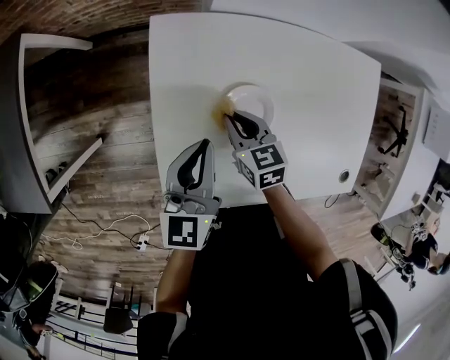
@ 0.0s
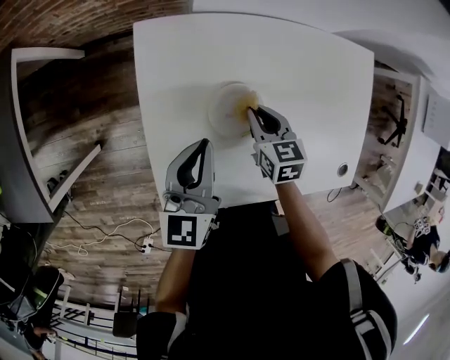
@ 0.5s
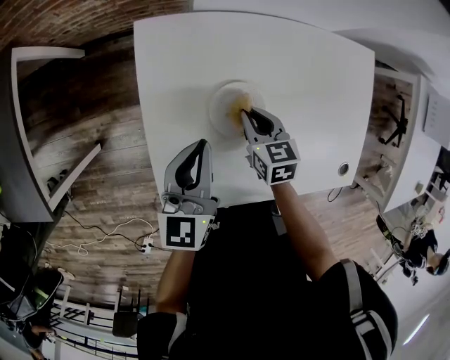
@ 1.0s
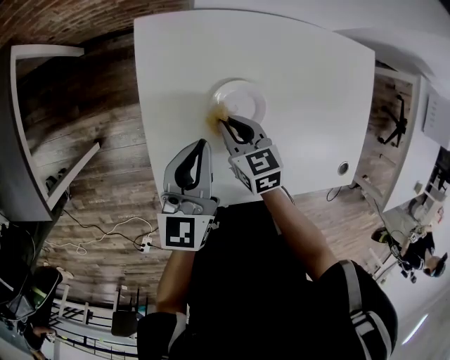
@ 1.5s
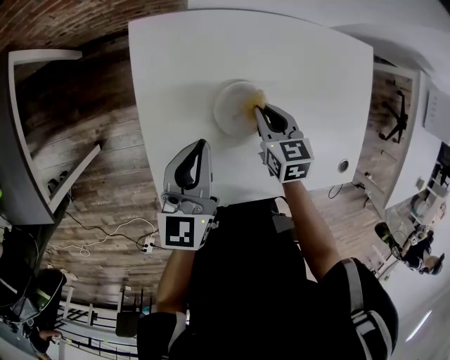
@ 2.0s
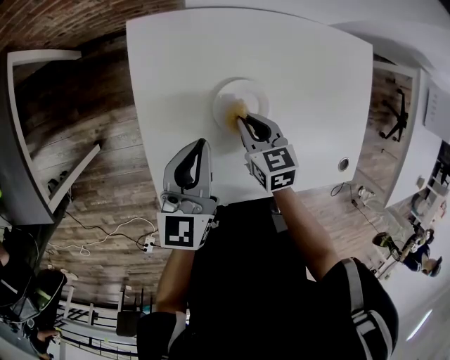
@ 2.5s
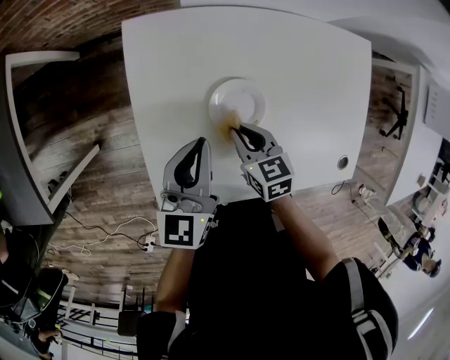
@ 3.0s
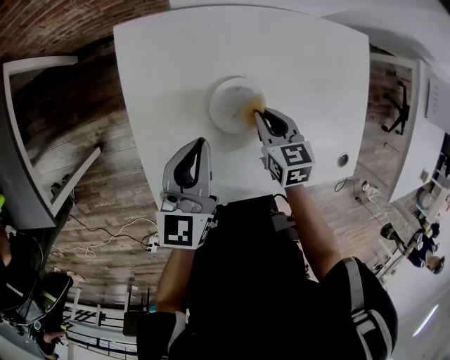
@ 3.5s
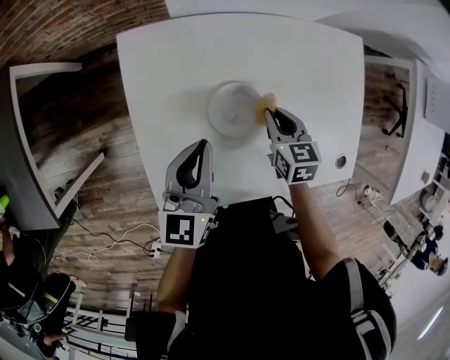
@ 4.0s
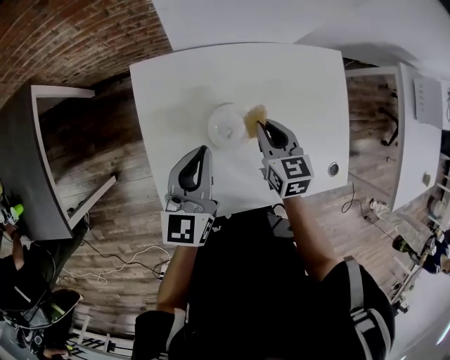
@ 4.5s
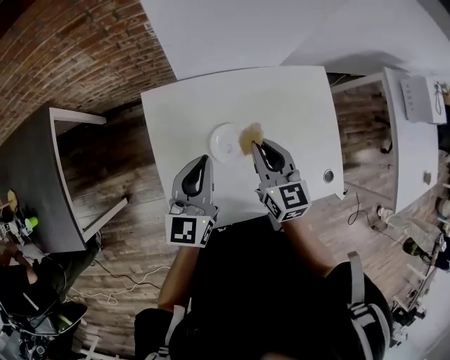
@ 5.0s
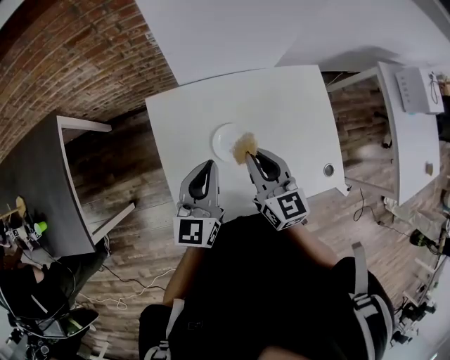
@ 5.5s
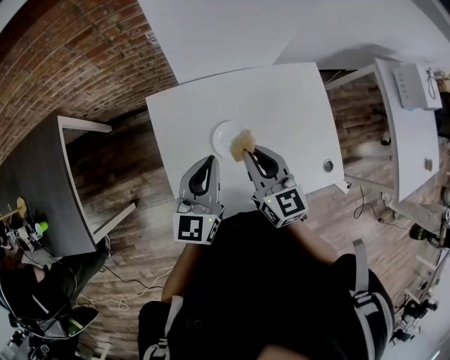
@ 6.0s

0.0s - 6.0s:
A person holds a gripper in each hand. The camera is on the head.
0.0s - 2.0s: The right gripper swings left and right, roughly 10 cm each way, with 2 reversals.
2.0s - 4.0s: The right gripper is displaced to the right by approximately 5 cm.
4.0s - 6.0s: The right gripper is displaced upward by about 25 cm, and angles its fingers upward, by about 30 degrees; the left gripper is displaced upward by approximately 15 cm.

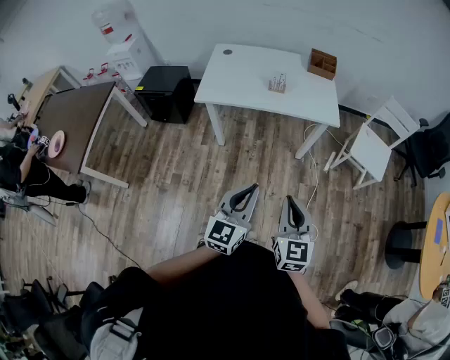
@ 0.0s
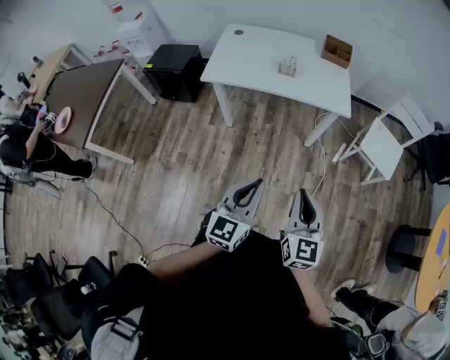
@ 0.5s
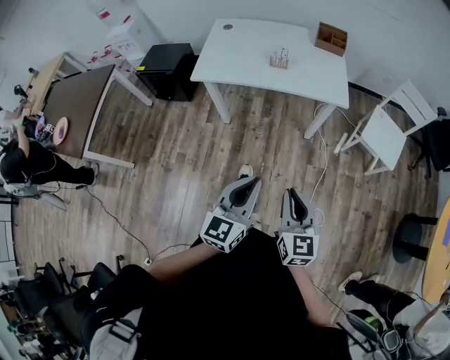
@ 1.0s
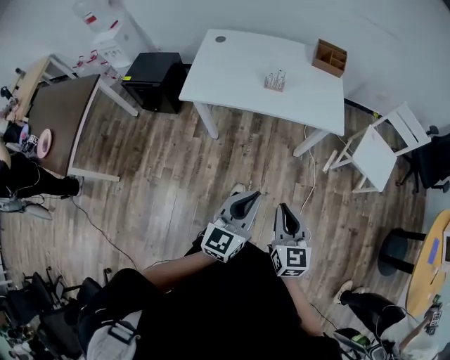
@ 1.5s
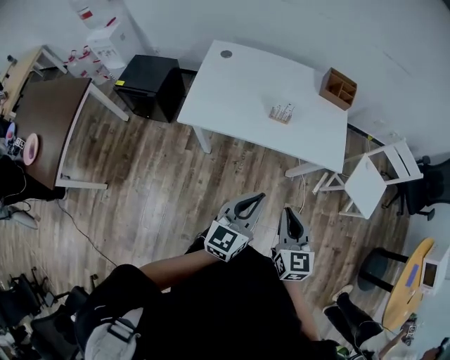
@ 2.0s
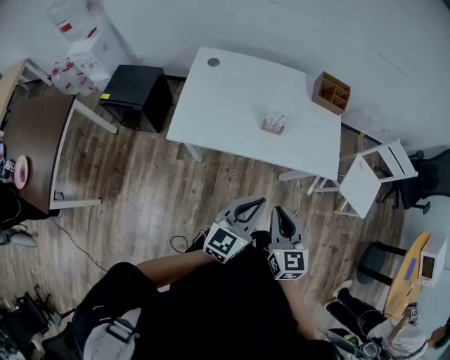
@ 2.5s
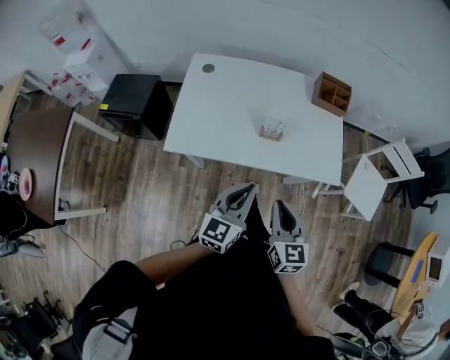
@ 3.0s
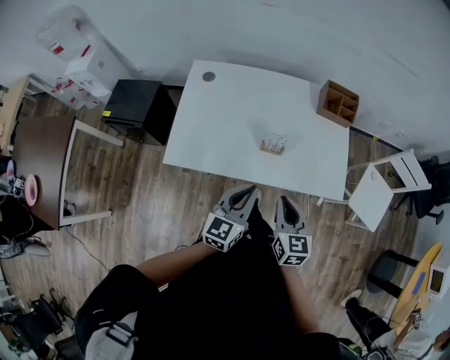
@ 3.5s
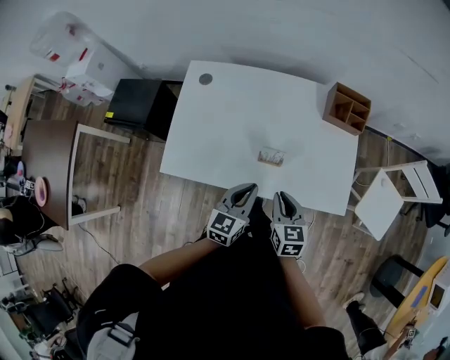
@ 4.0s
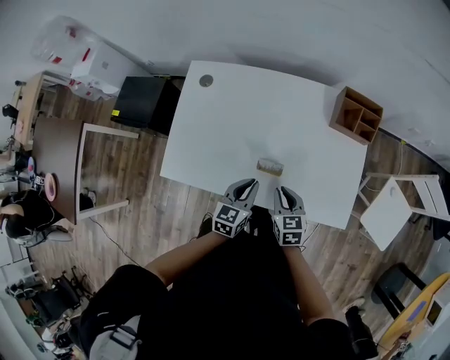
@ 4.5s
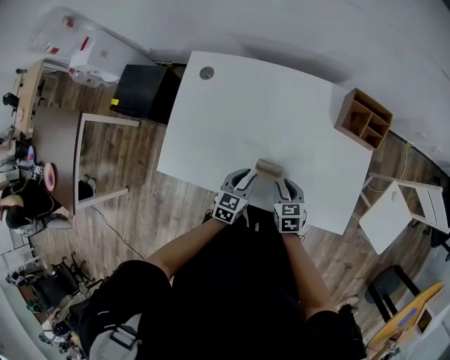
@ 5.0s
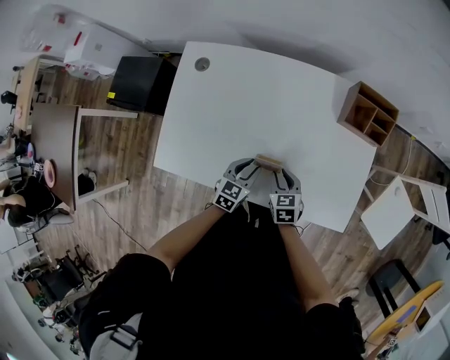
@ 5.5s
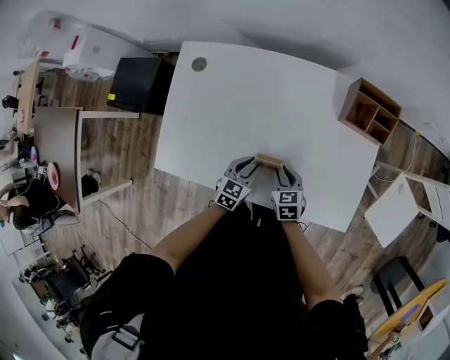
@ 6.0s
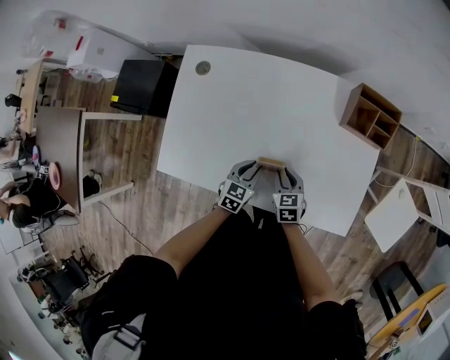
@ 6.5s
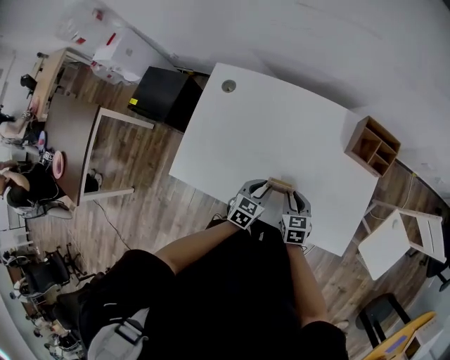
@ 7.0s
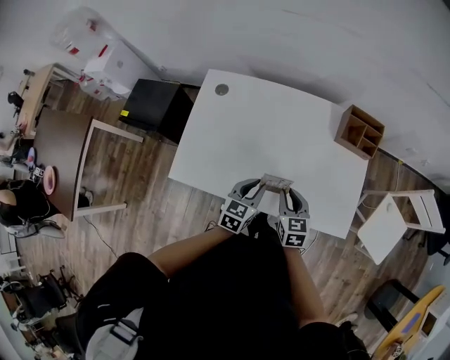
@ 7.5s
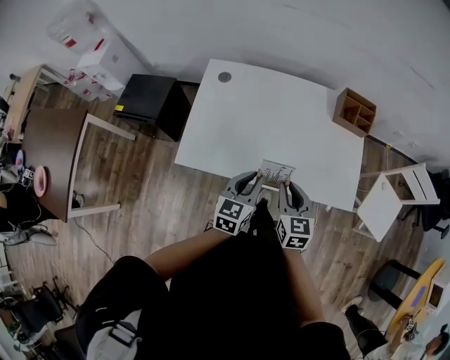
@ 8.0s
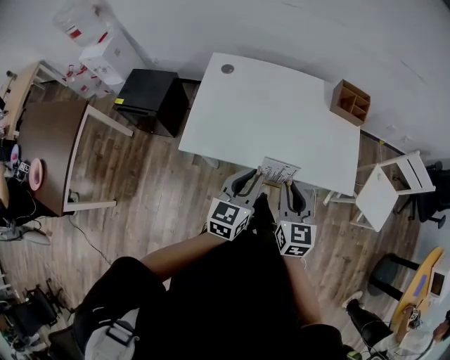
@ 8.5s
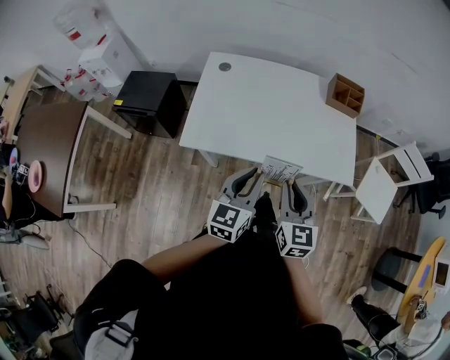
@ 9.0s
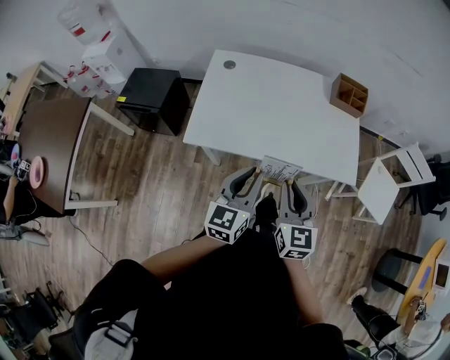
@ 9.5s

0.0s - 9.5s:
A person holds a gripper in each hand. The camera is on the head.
0.0s - 2.0s: The grippers both shift forward by roughly 30 cm.
2.0s - 4.0s: The right gripper shifts some 30 cm forward, while the left gripper is displaced forward and downward by roughly 35 cm.
4.0s - 5.5s: Both grippers move downward and forward, about 20 cm. The left gripper opens its fingers.
5.5s - 7.5s: The two grippers go some 10 cm upward.
7.5s - 9.5s: The grippers both shift backward and upward by approximately 30 cm. The left gripper rotates approximately 20 degrees, while the right gripper turns by about 20 degrees.

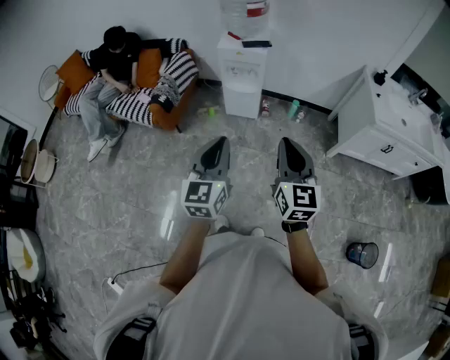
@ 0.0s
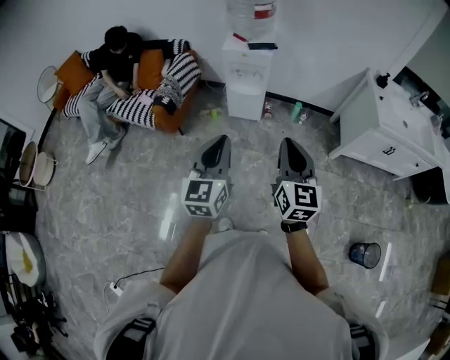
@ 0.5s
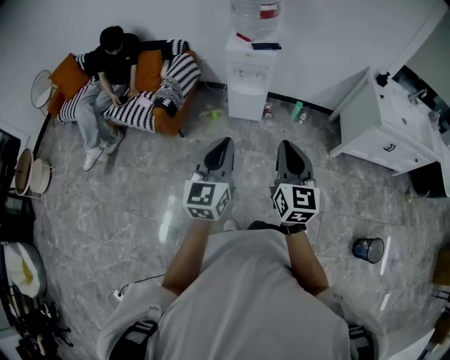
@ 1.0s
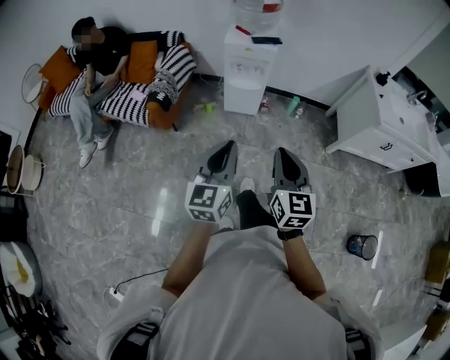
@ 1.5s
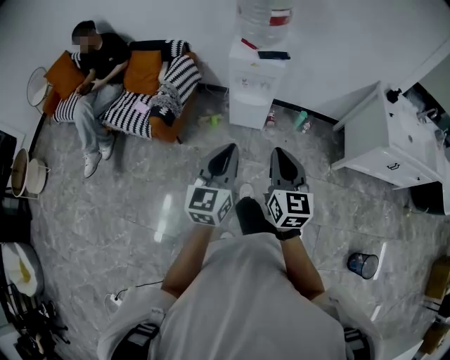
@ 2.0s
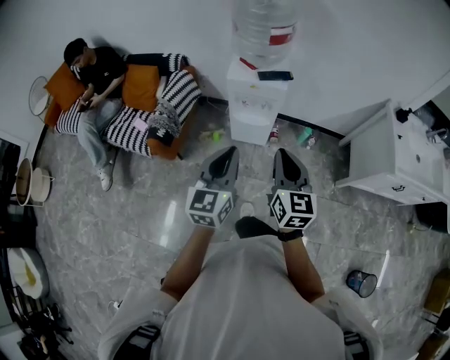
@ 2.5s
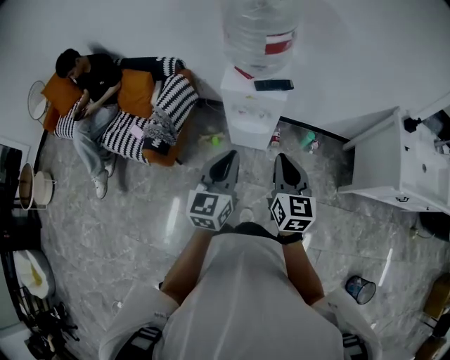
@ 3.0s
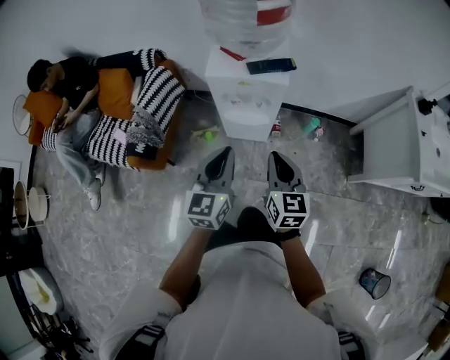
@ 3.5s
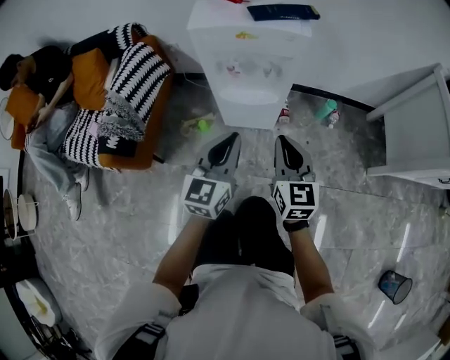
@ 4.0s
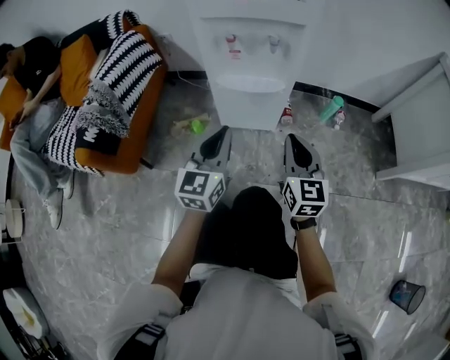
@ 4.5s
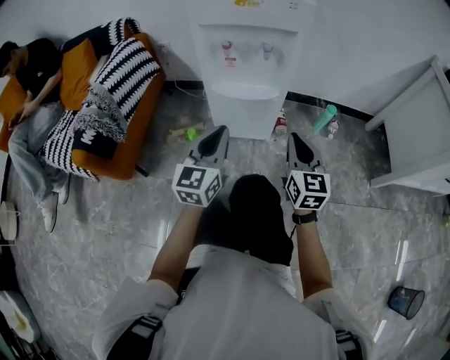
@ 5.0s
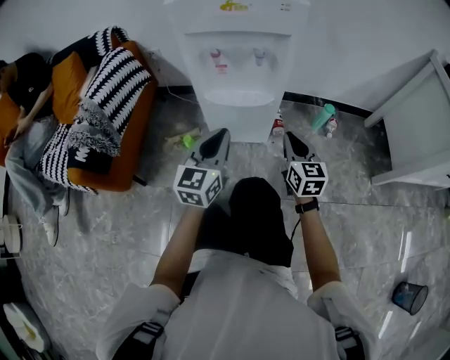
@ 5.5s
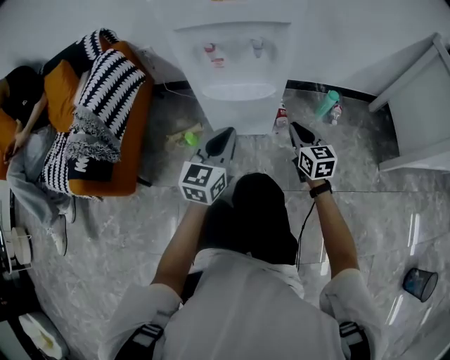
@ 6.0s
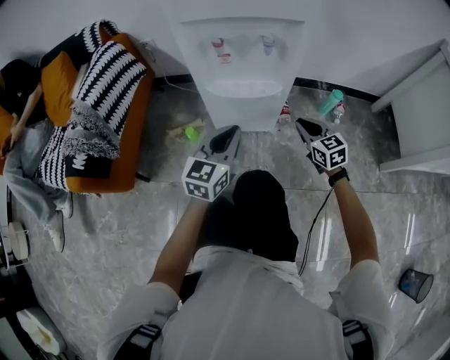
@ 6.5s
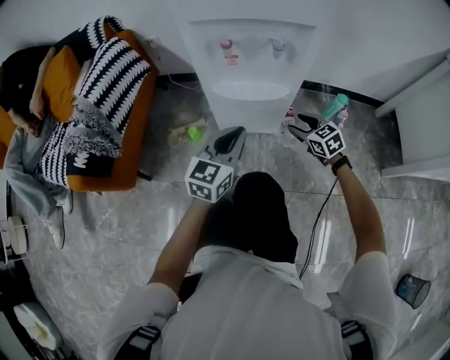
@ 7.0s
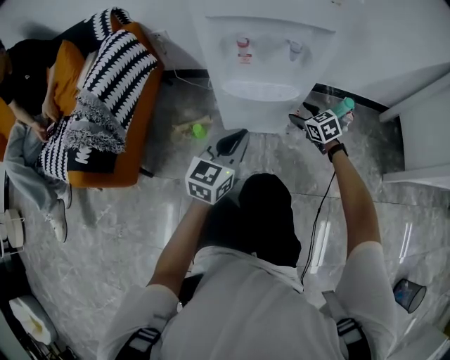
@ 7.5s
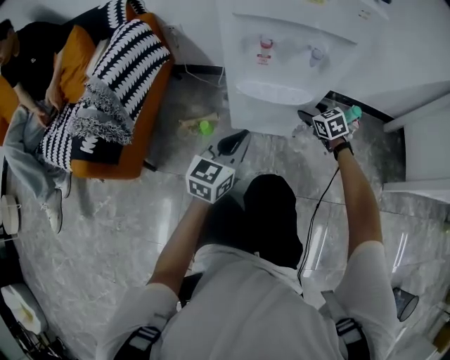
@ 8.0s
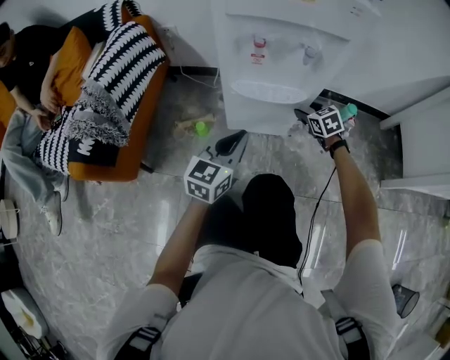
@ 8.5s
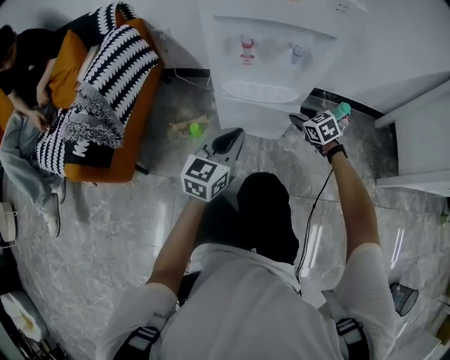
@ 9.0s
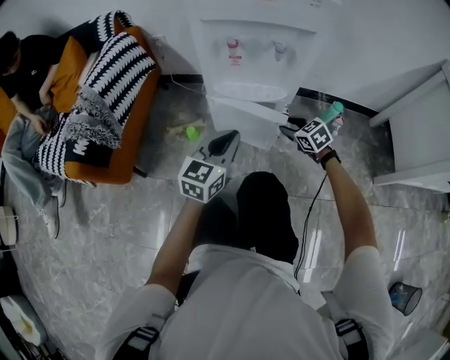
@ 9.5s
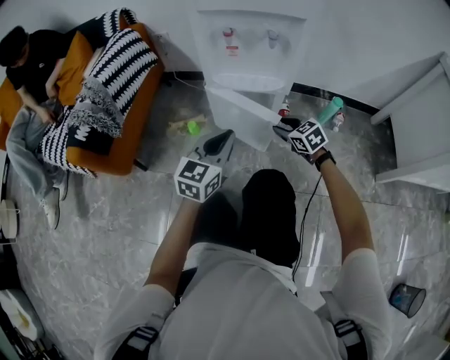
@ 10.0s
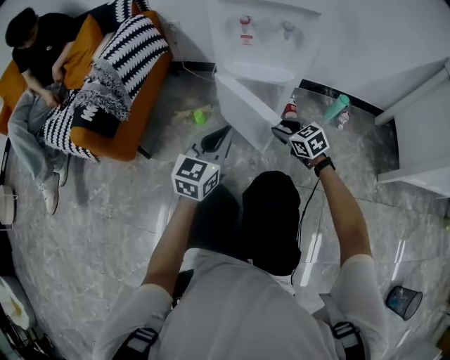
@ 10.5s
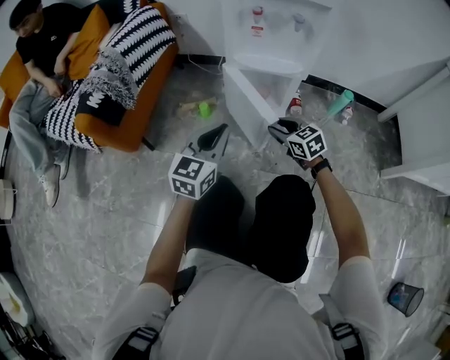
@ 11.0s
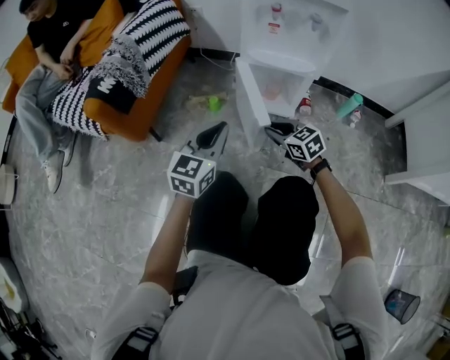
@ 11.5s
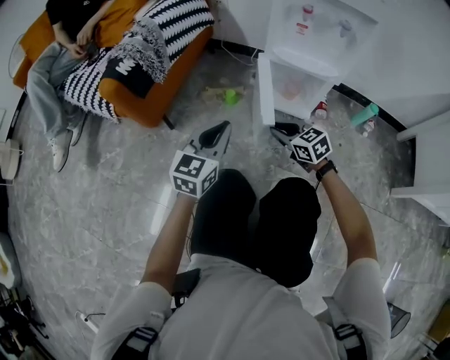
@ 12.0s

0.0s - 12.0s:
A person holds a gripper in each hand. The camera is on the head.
0.0s - 2.0s: The left gripper travels forward and to the left by approximately 15 cm, while the right gripper is displaced forward, to the left and downward by some 20 cm.
2.0s - 4.0s: The two grippers go approximately 50 cm downward and forward.
4.0s - 6.0s: The right gripper moves downward and forward, some 30 cm; the left gripper is displaced downward by approximately 20 cm.
6.0s - 8.0s: The left gripper travels to the left by about 5 cm. The right gripper travels forward and downward by about 15 cm, swivels about 30 degrees, and opens.
8.0s - 10.0s: The left gripper shifts about 5 cm backward; the right gripper shifts some 15 cm backward, and closes.
10.0s - 12.0s: Both grippers travel together to the left and backward, approximately 20 cm.
